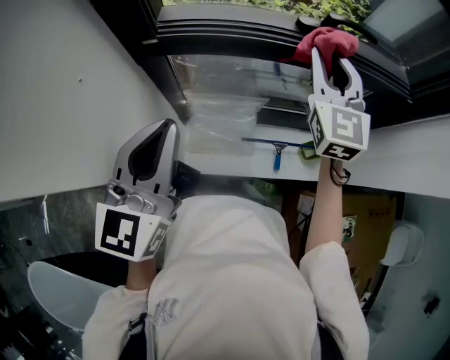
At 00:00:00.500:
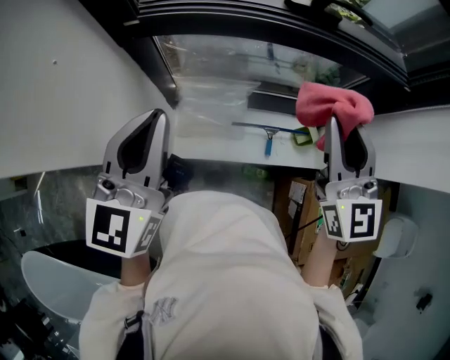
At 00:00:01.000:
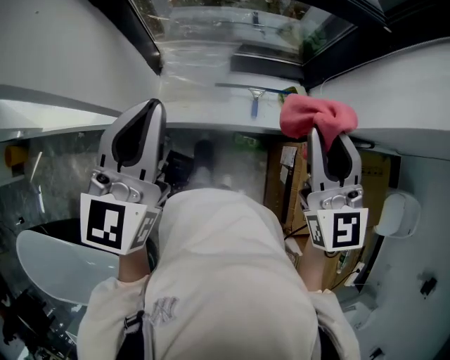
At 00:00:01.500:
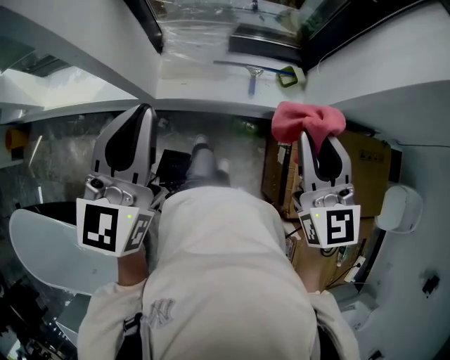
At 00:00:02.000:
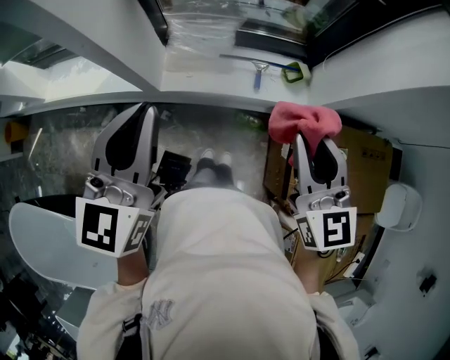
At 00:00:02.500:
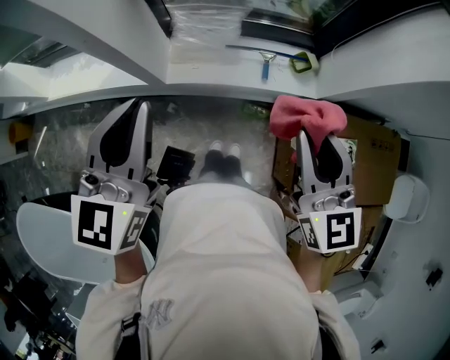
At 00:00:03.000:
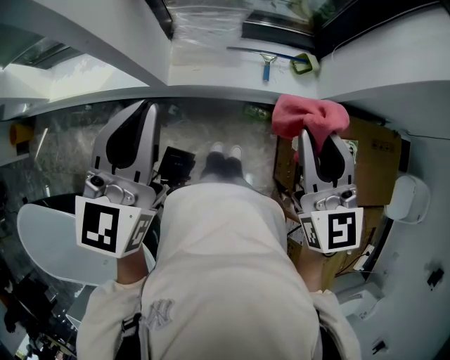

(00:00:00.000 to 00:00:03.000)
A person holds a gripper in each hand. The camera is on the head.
00:00:00.000 - 00:00:01.500: The right gripper moves backward, about 40 cm, and turns by approximately 20 degrees, while the left gripper travels backward and to the right by some 30 cm.
00:00:01.500 - 00:00:03.000: The right gripper travels to the left by roughly 5 cm.

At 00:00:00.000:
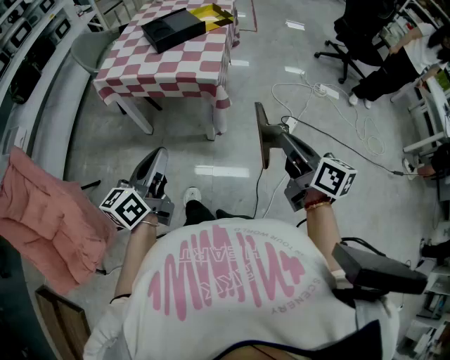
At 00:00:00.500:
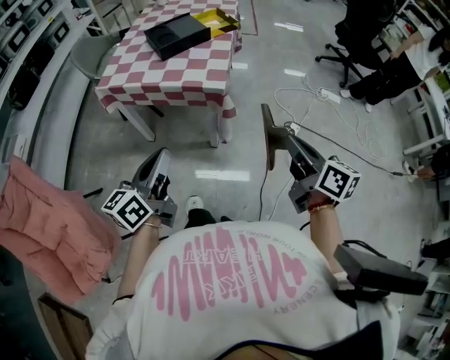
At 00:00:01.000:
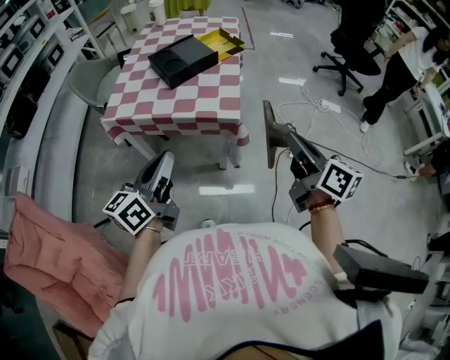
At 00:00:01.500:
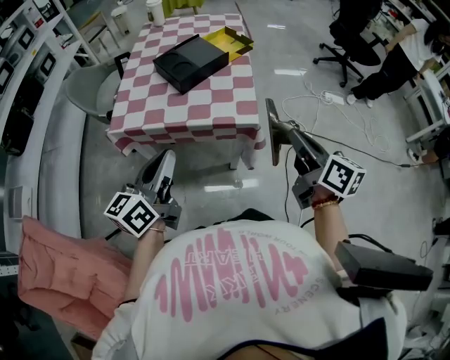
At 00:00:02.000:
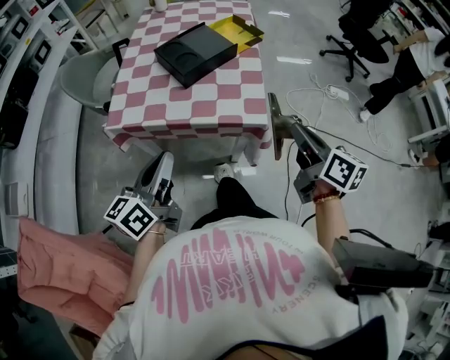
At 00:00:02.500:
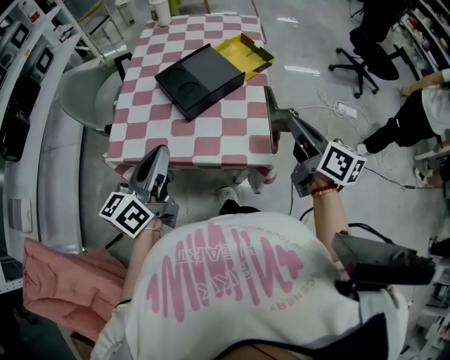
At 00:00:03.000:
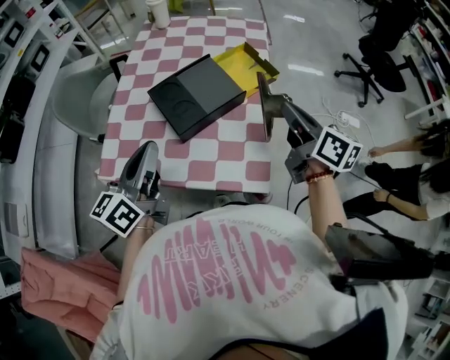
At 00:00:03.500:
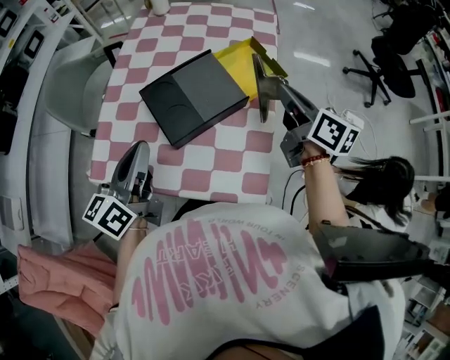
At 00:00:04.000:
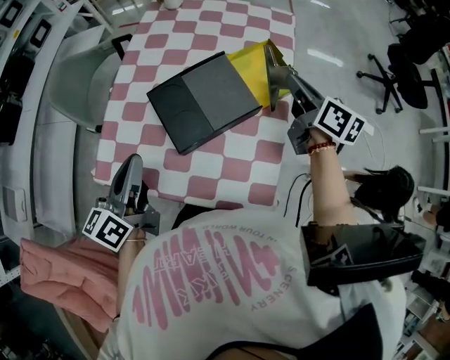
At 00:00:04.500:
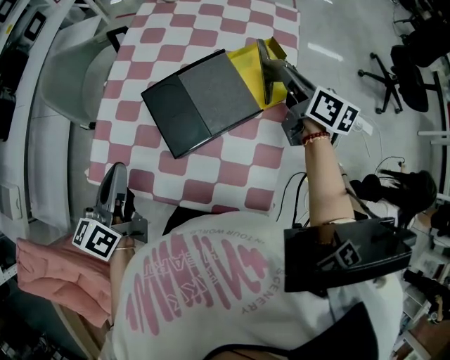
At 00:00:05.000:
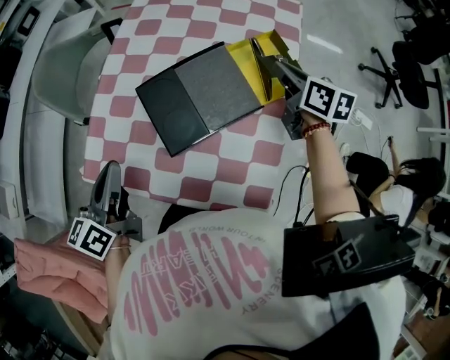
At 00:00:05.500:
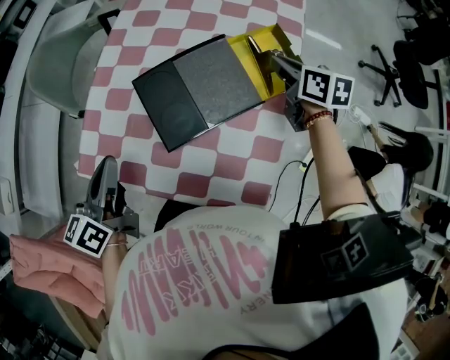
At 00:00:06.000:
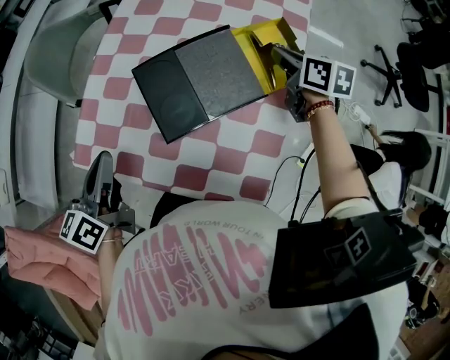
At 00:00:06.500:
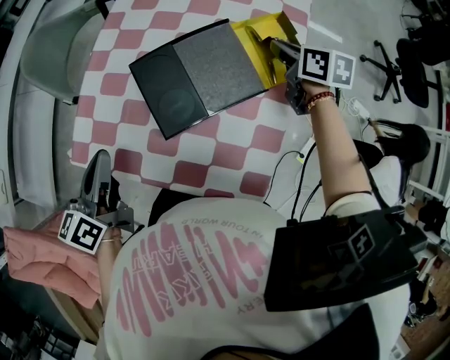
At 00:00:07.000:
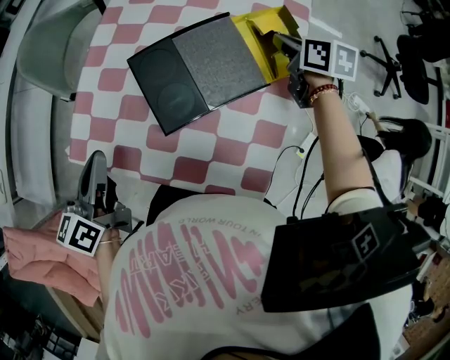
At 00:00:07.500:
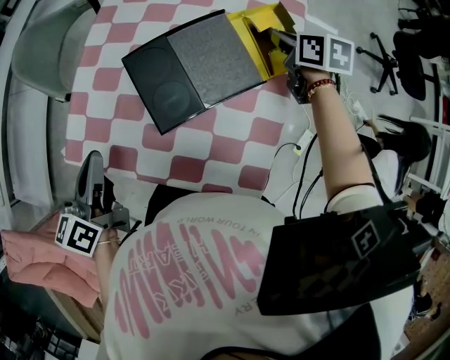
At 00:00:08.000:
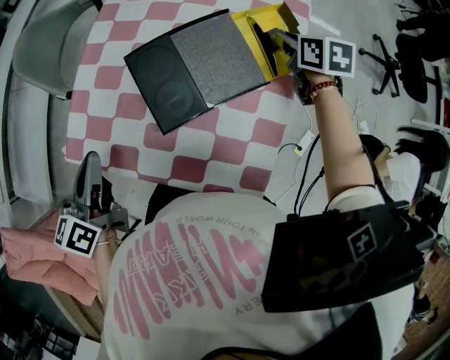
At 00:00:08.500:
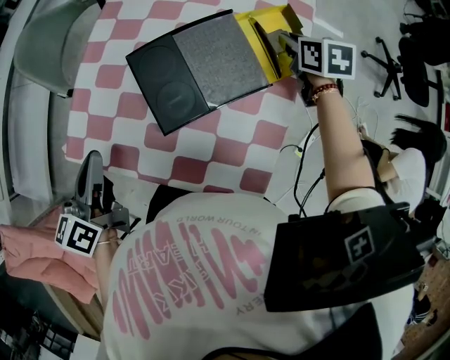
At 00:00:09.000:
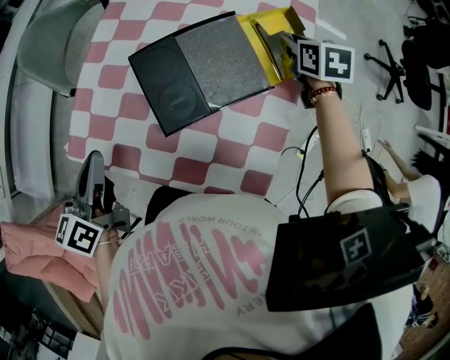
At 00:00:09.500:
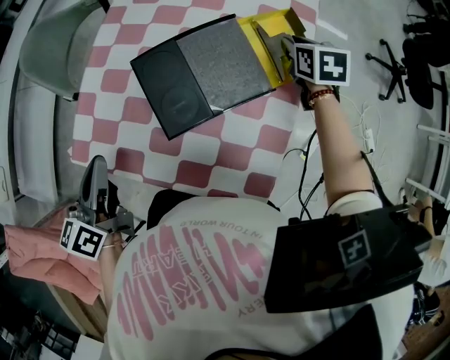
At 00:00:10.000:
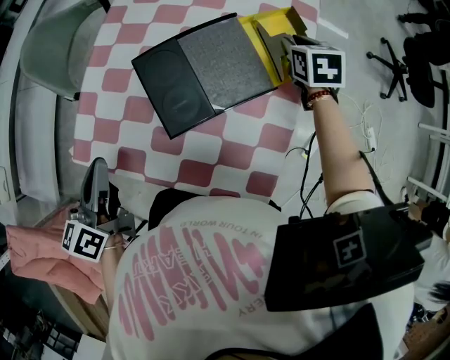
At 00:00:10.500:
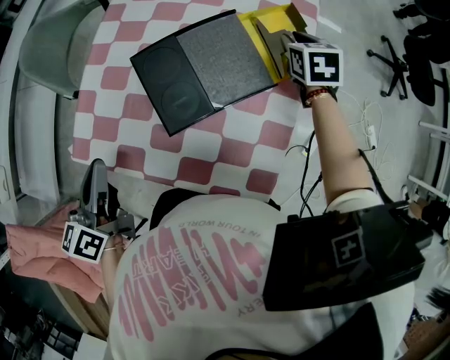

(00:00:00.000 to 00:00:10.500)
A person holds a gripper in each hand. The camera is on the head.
00:00:00.000 - 00:00:02.000: Both grippers travel together forward and to the left, roughly 30 cm.
00:00:02.000 - 00:00:04.000: The left gripper moves forward, approximately 30 cm. The right gripper travels forward by some 50 cm.
00:00:04.000 - 00:00:06.500: The left gripper goes about 5 cm downward. Meanwhile the right gripper heads downward and forward, covering roughly 15 cm, and rotates about 30 degrees.
00:00:06.500 - 00:00:08.500: The grippers move only a little.
00:00:08.500 - 00:00:10.500: The grippers move only a little.

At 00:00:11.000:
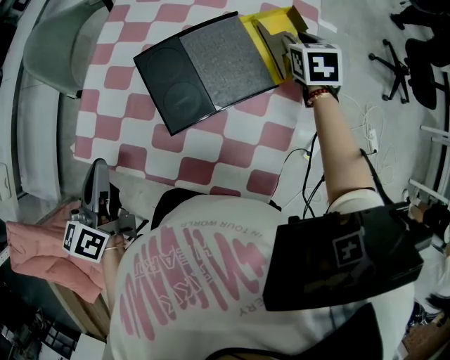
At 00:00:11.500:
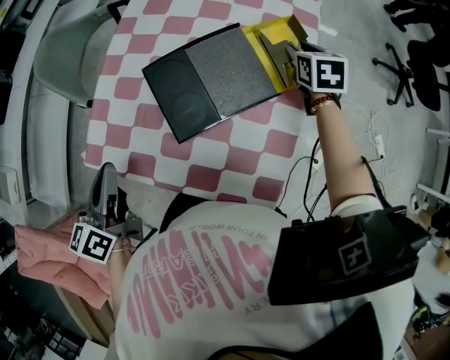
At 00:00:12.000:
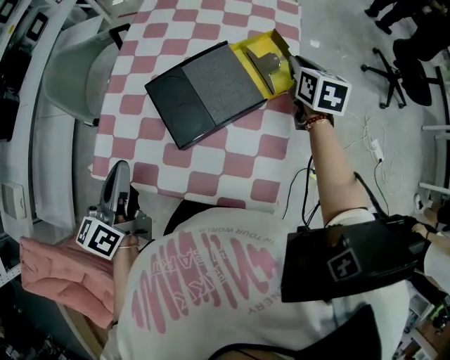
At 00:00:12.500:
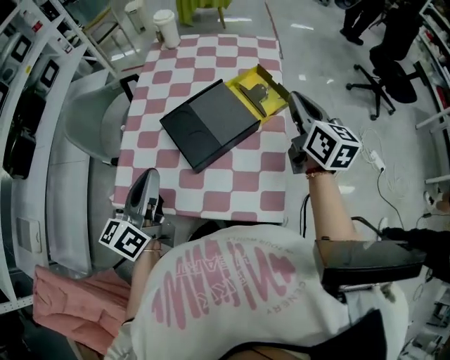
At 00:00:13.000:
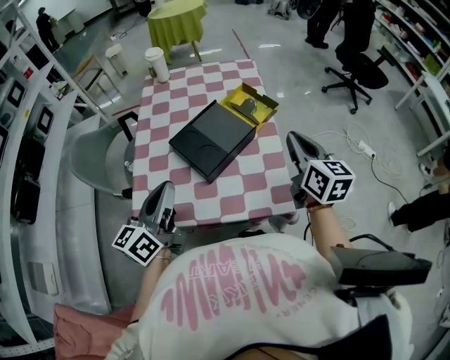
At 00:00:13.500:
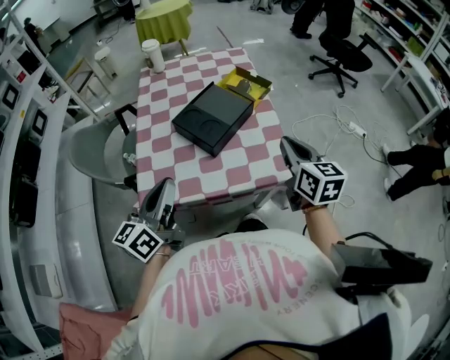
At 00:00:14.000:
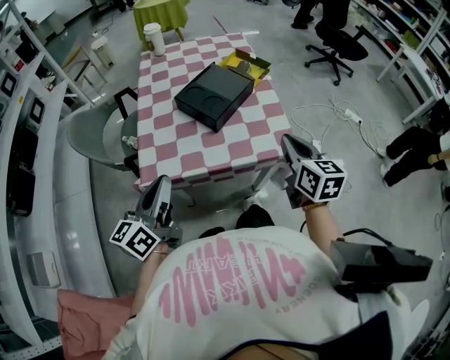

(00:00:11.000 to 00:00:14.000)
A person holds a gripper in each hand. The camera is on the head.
00:00:11.000 - 00:00:12.500: The right gripper goes some 25 cm upward and backward, tips its fingers upward by some 40 degrees, and closes its fingers. The left gripper is displaced upward and to the right by about 10 cm, and rotates about 30 degrees.
00:00:12.500 - 00:00:14.000: The right gripper goes approximately 35 cm backward, while the left gripper is displaced backward and to the left by roughly 20 cm.

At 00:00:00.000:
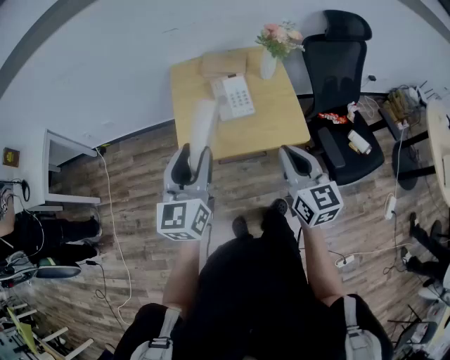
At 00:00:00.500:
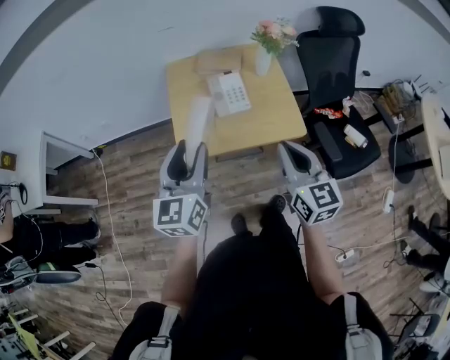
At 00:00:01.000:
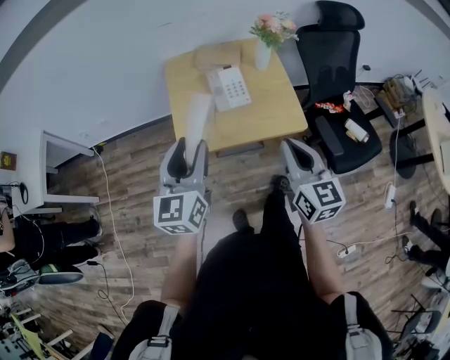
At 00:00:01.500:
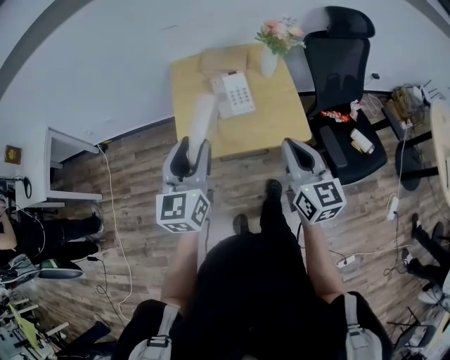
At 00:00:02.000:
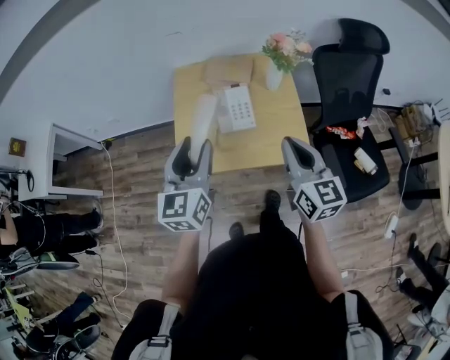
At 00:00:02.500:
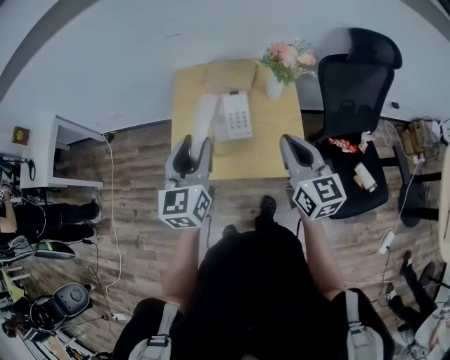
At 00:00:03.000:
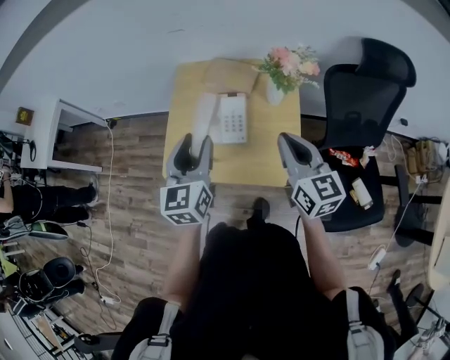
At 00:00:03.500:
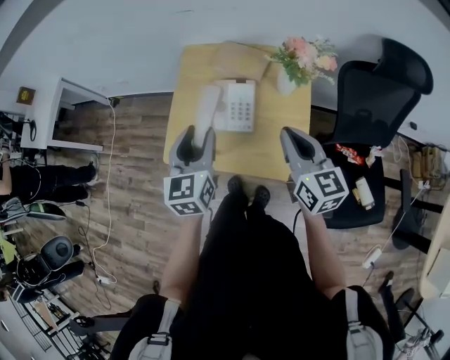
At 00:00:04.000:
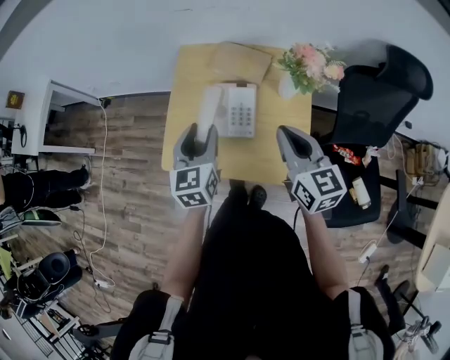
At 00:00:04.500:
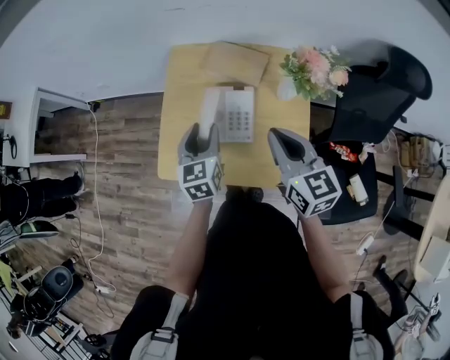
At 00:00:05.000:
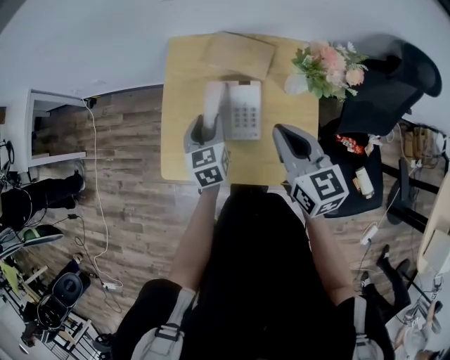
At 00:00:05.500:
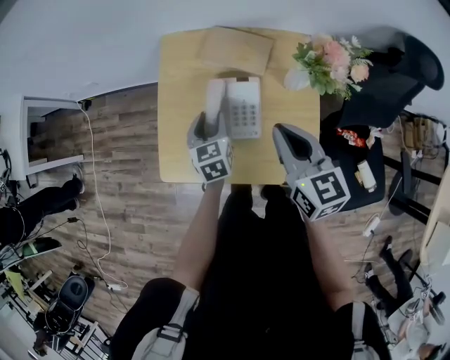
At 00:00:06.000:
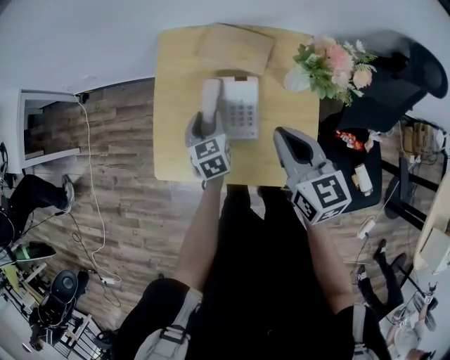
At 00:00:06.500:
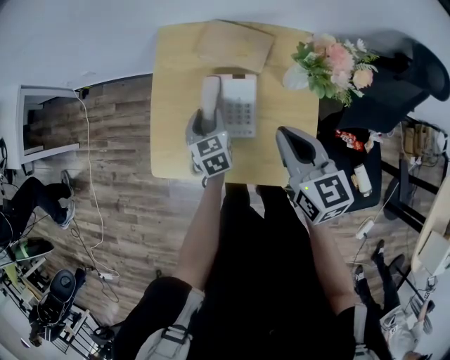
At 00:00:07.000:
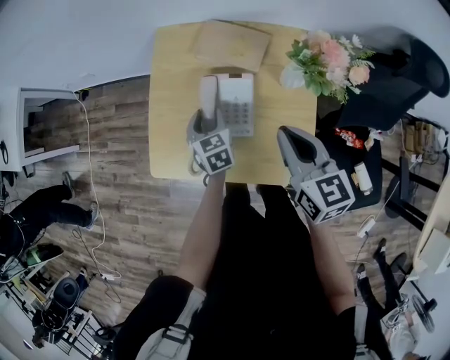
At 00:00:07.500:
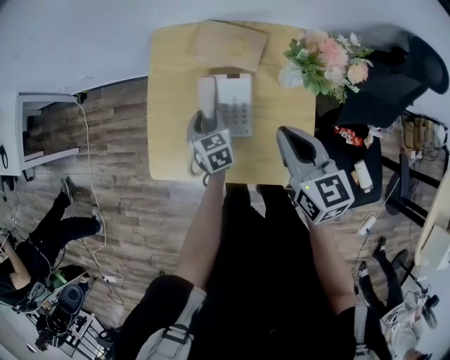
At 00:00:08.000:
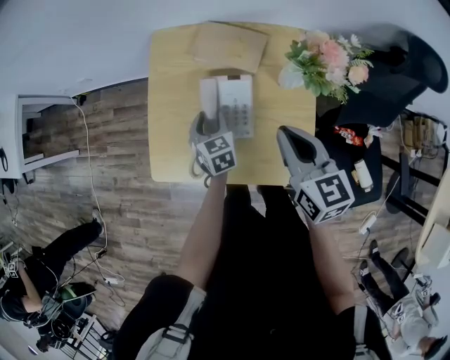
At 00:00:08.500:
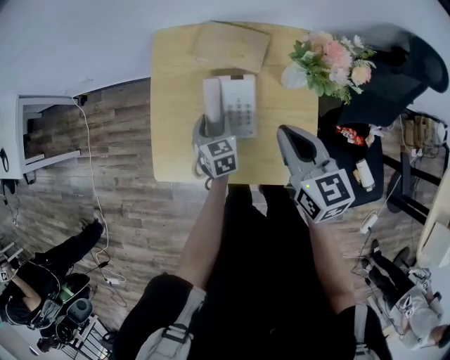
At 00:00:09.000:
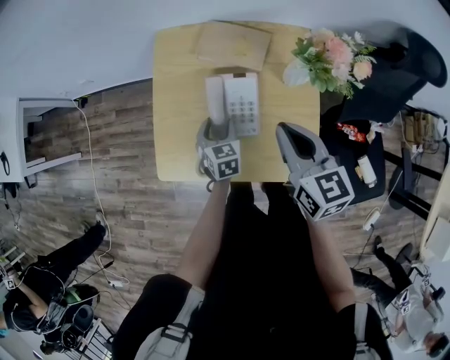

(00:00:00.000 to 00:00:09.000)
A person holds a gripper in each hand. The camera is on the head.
00:00:00.000 - 00:00:02.000: The left gripper heads forward, covering approximately 10 cm, while the right gripper is displaced forward and to the right by approximately 10 cm.
00:00:02.000 - 00:00:04.500: The right gripper is displaced forward by some 20 cm, and rotates about 20 degrees; the left gripper shifts approximately 25 cm forward and downward, and rotates approximately 20 degrees.
00:00:04.500 - 00:00:07.000: The right gripper shifts approximately 5 cm downward. Meanwhile the left gripper heads downward, covering approximately 15 cm.
00:00:07.000 - 00:00:09.000: The grippers move only a little.
